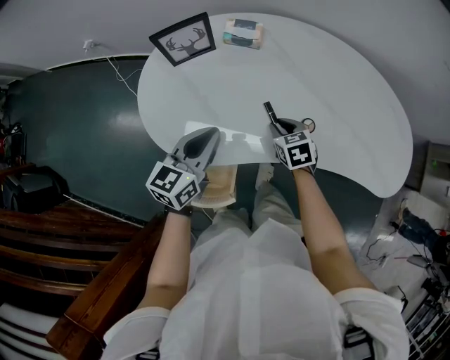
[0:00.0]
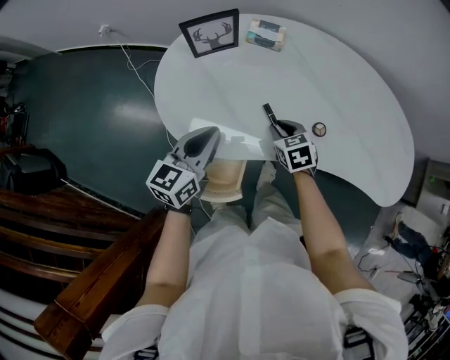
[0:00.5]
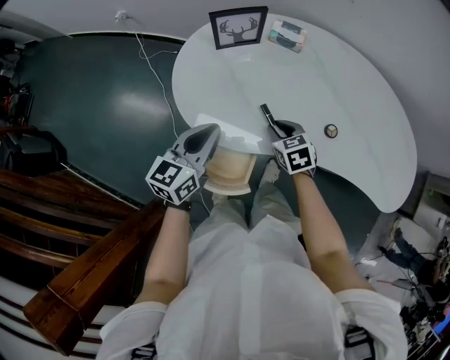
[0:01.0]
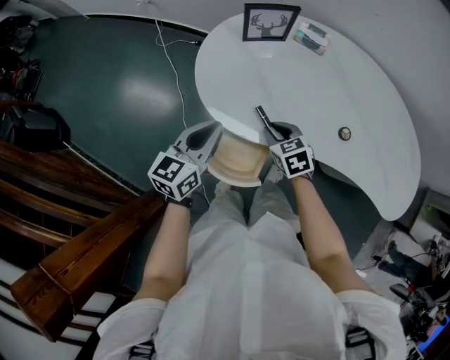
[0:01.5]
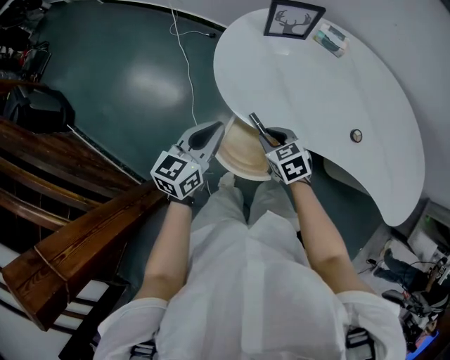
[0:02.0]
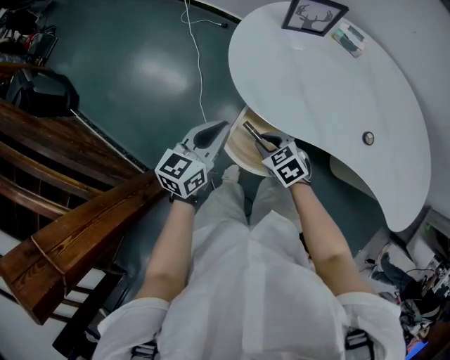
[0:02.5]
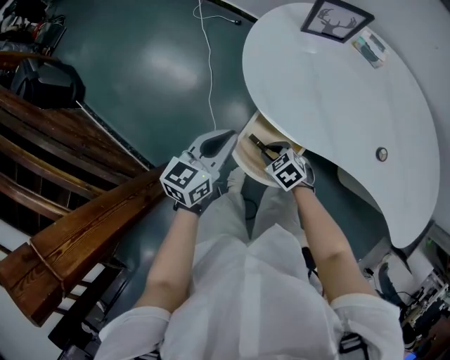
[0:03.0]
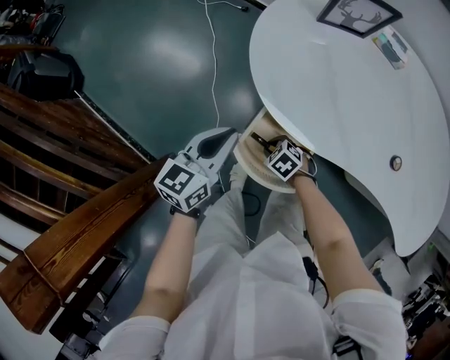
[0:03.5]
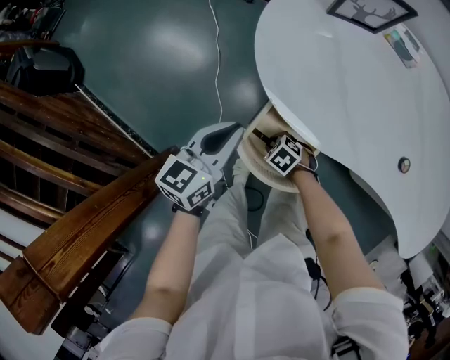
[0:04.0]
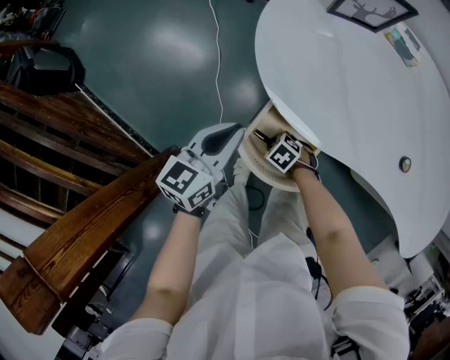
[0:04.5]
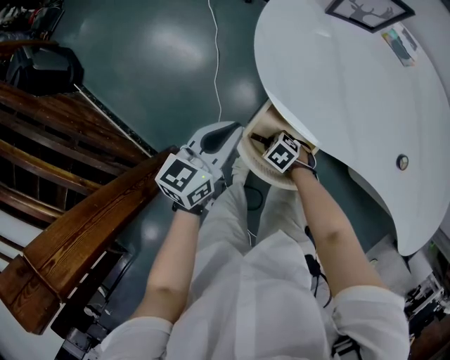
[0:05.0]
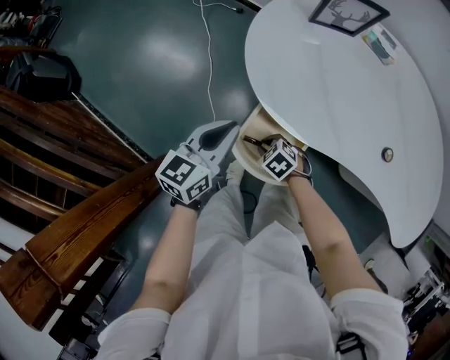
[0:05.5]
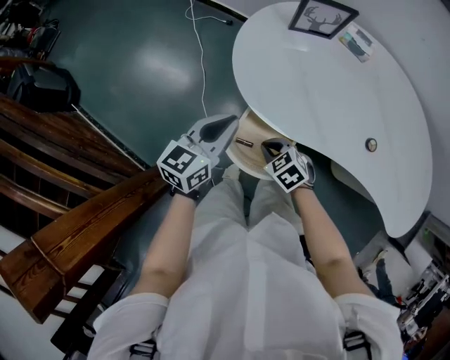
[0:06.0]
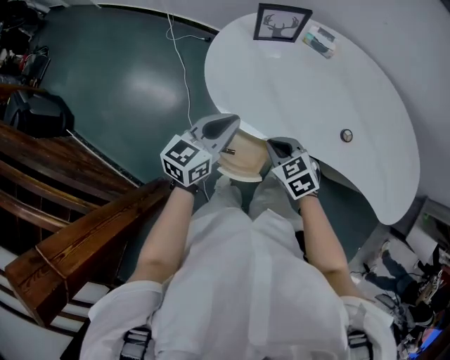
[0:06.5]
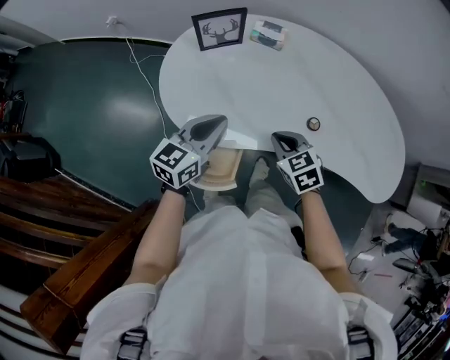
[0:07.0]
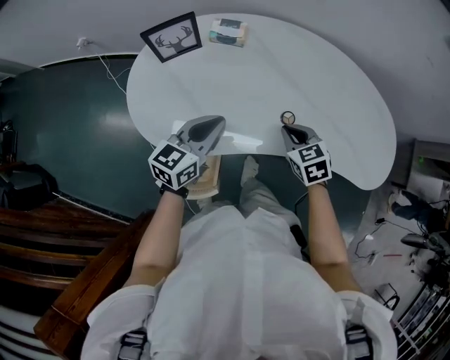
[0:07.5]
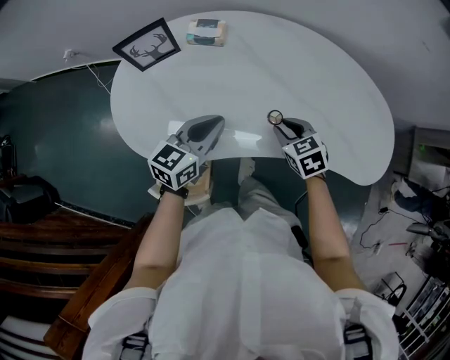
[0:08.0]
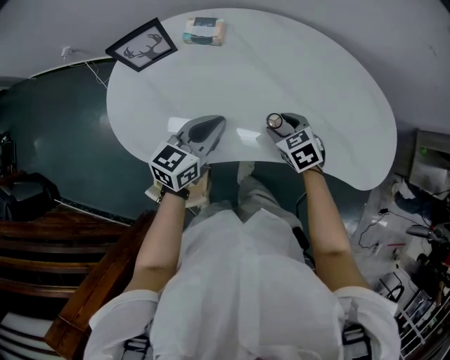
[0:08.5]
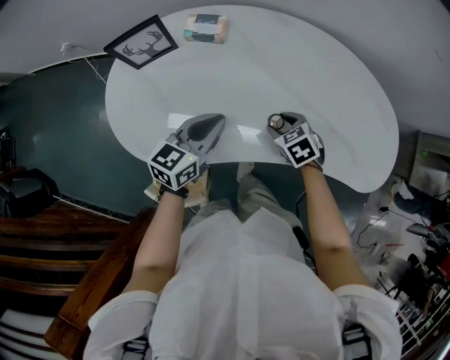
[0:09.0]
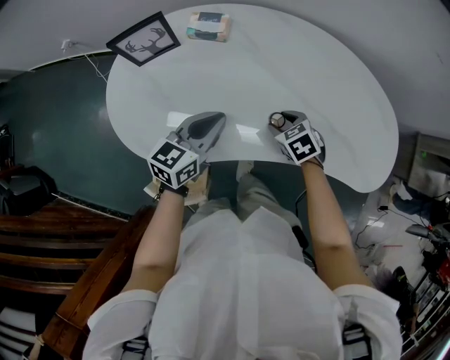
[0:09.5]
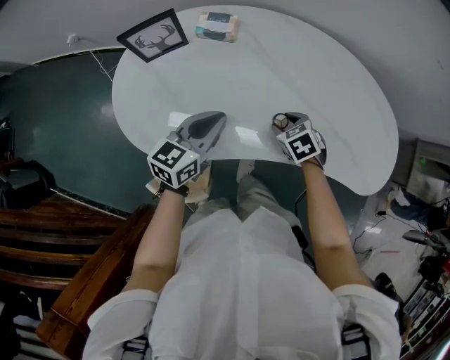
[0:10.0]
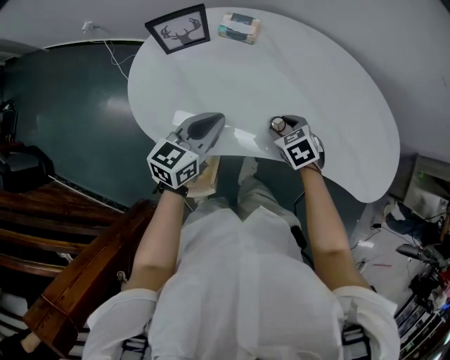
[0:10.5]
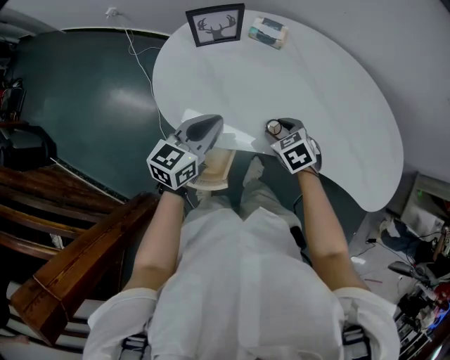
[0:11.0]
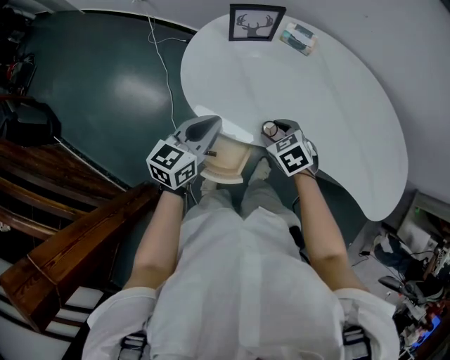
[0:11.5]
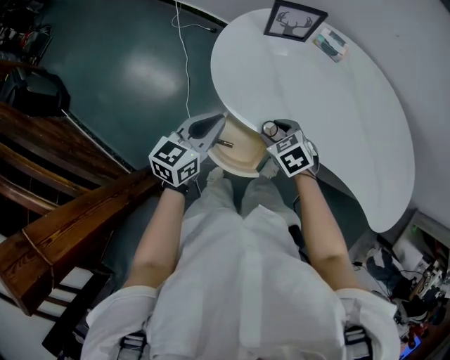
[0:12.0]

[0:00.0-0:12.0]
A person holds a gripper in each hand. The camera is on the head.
0:00.0 to 0:02.0: The grippers both shift to the left and backward by approximately 25 cm. The right gripper swivels approximately 30 degrees.
0:02.0 to 0:04.0: The left gripper shifts some 10 cm downward. Meanwhile the right gripper travels downward by about 25 cm, and swivels roughly 40 degrees.
0:04.0 to 0:06.0: The right gripper shifts roughly 20 cm upward, and rotates some 20 degrees, while the left gripper goes roughly 10 cm upward.
0:06.0 to 0:08.0: The left gripper shifts by roughly 30 cm, and rotates about 30 degrees; the right gripper moves some 40 cm, and changes its angle by roughly 40 degrees.
0:08.0 to 0:10.0: The right gripper moves downward, roughly 5 cm, and opens up.
0:10.0 to 0:12.0: The left gripper changes place by about 30 cm, and turns by approximately 20 degrees. The right gripper moves some 30 cm, and rotates approximately 30 degrees.

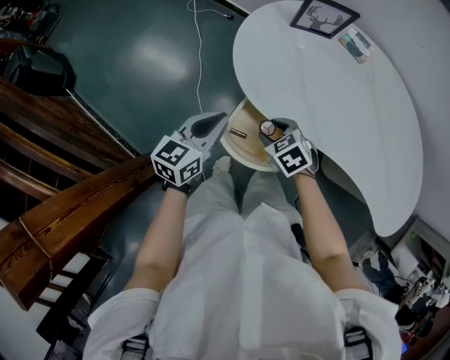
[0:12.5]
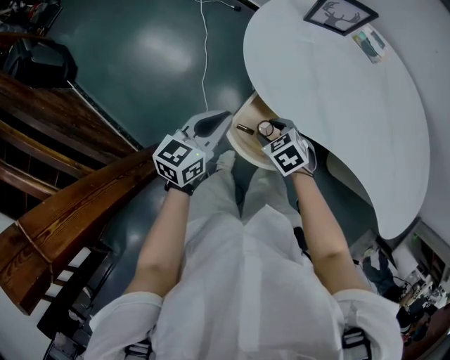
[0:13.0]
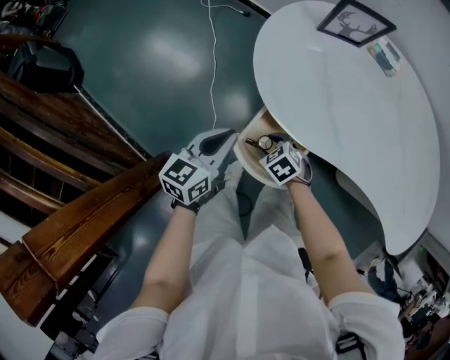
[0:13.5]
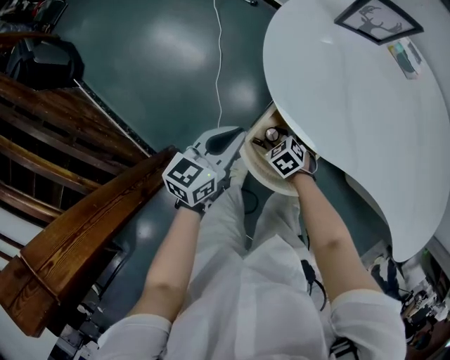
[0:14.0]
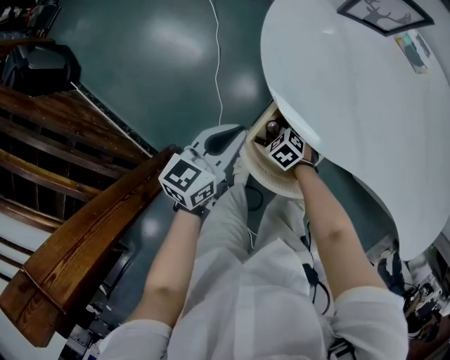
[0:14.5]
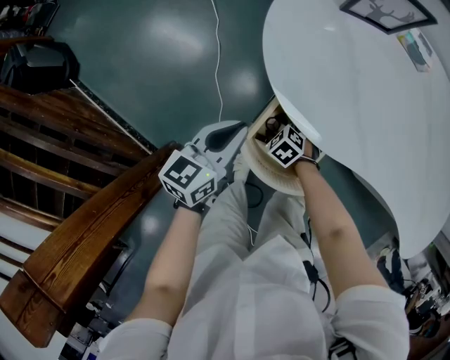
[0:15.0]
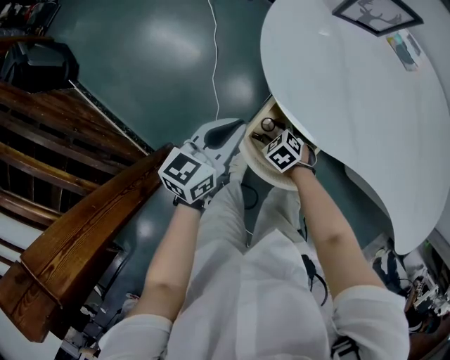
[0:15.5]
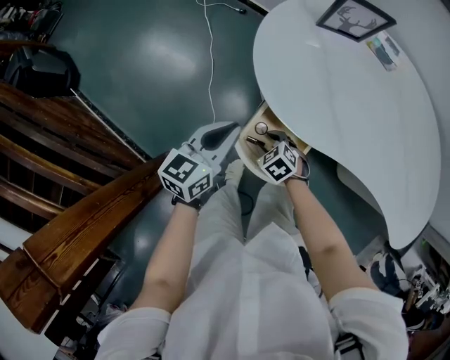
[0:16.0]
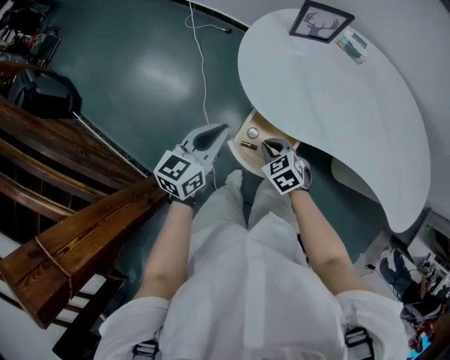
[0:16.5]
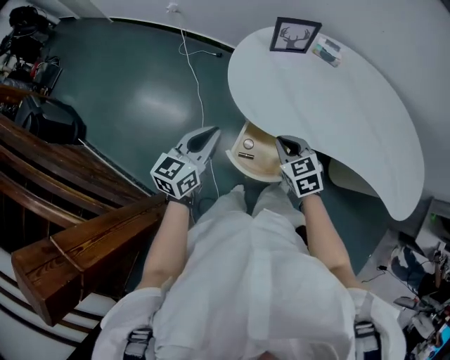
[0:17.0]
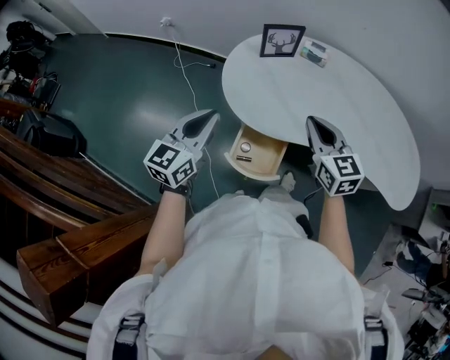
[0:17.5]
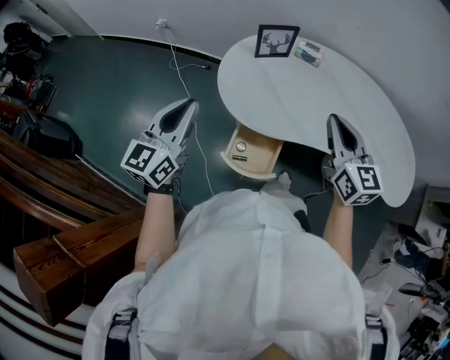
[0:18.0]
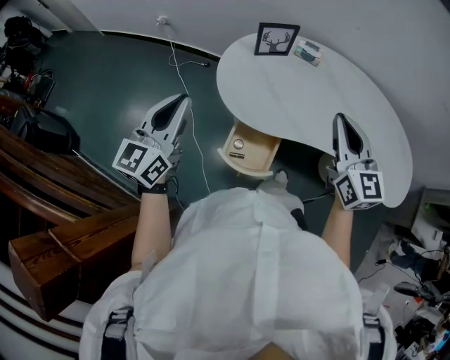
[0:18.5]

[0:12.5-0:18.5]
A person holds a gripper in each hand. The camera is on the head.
0:12.5 to 0:14.5: The right gripper moves downward, some 25 cm, while the left gripper moves downward, about 10 cm.
0:14.5 to 0:16.5: The right gripper moves upward, some 20 cm, changes its angle by approximately 20 degrees, and closes up. The left gripper is displaced upward by roughly 10 cm.
0:16.5 to 0:18.5: The left gripper goes roughly 20 cm upward, and changes its angle by roughly 20 degrees; the right gripper shifts approximately 40 cm upward and to the right, and angles its fingers upward, by approximately 50 degrees.

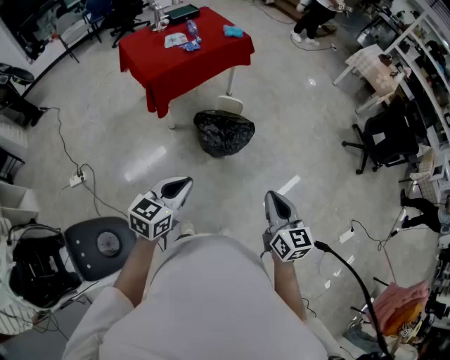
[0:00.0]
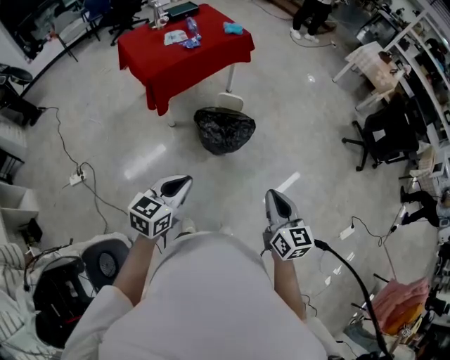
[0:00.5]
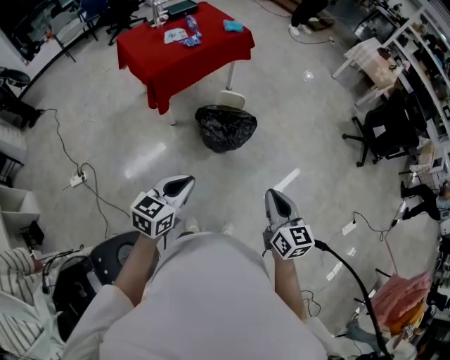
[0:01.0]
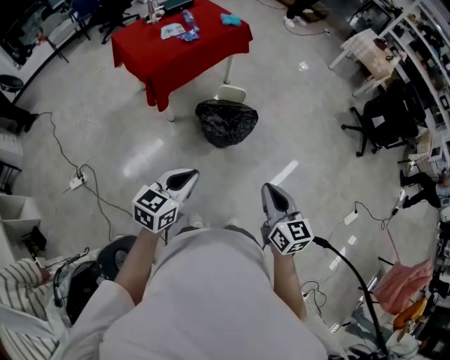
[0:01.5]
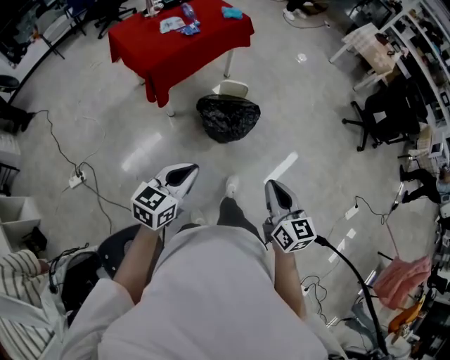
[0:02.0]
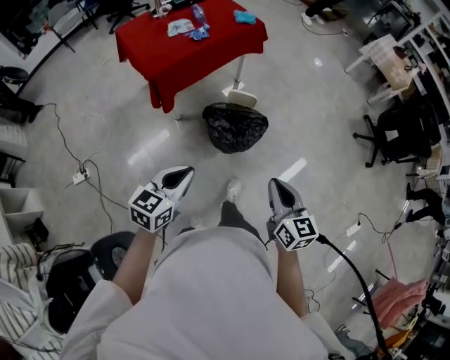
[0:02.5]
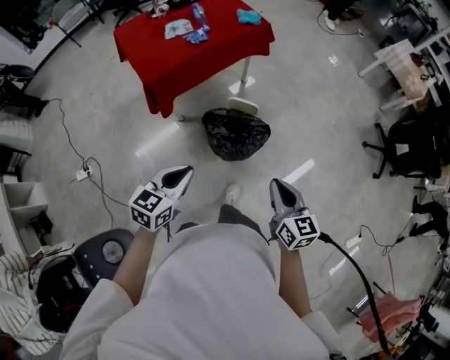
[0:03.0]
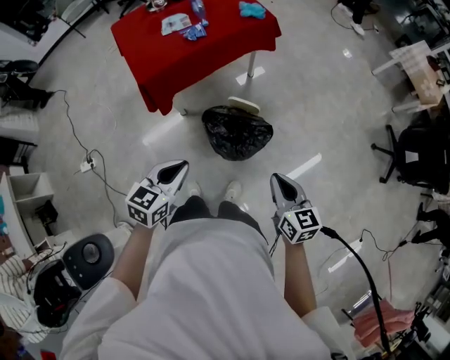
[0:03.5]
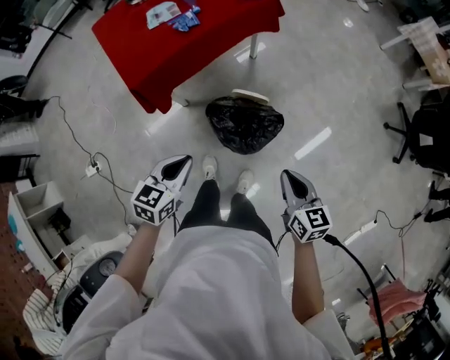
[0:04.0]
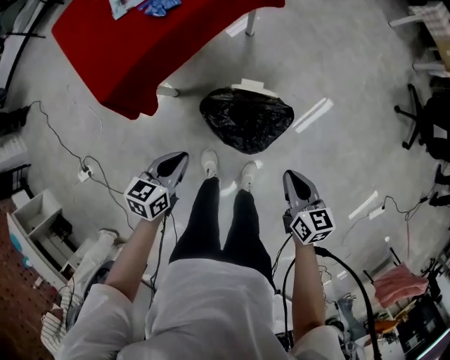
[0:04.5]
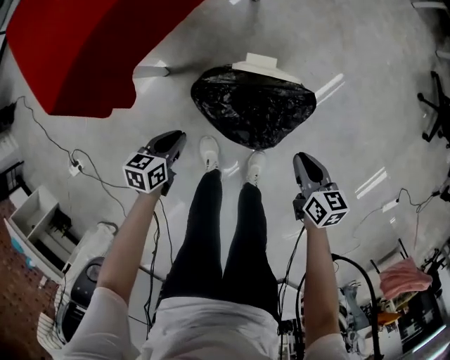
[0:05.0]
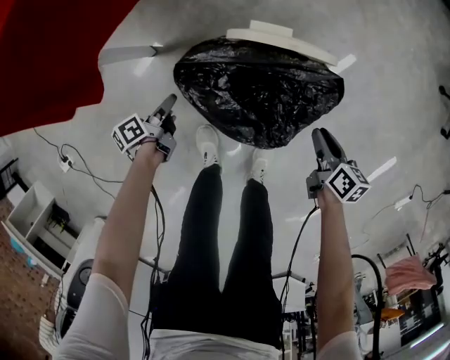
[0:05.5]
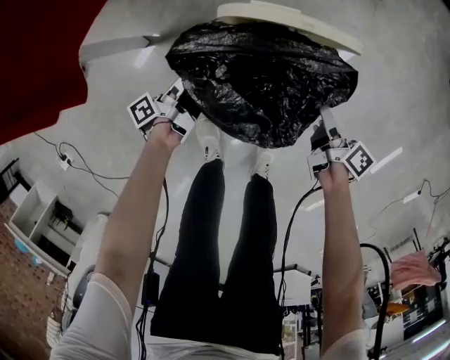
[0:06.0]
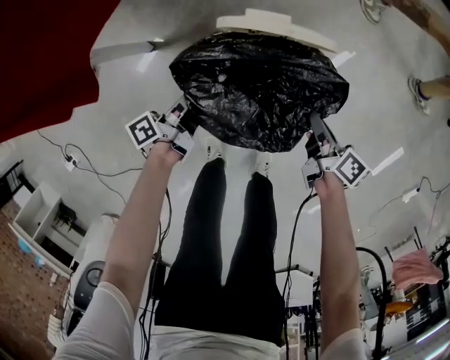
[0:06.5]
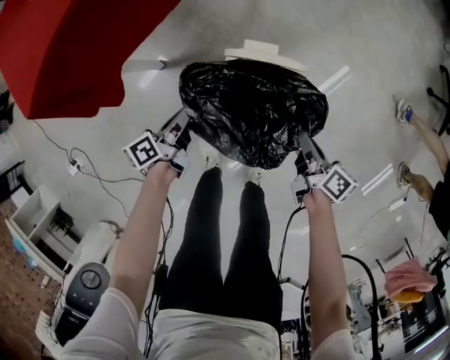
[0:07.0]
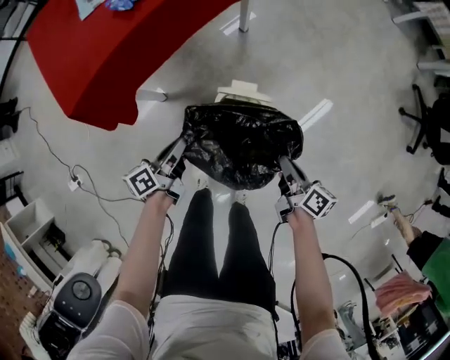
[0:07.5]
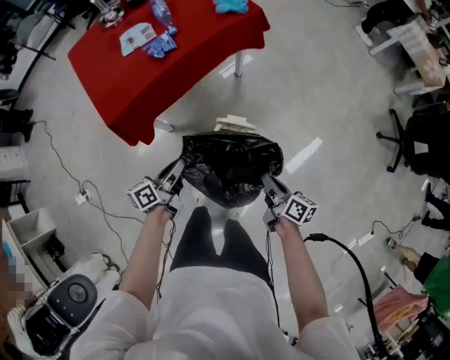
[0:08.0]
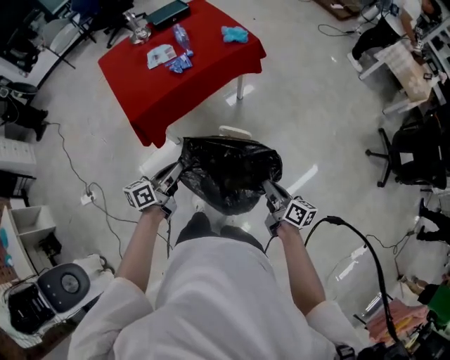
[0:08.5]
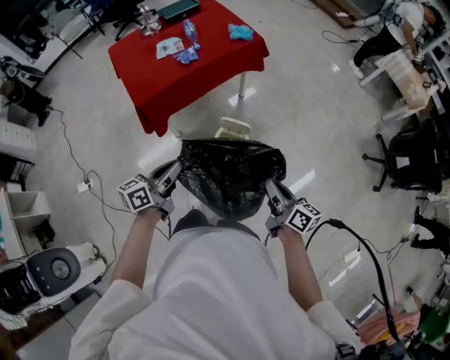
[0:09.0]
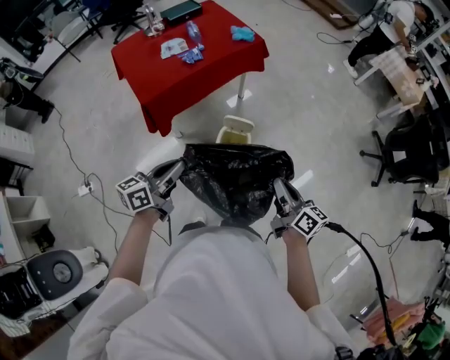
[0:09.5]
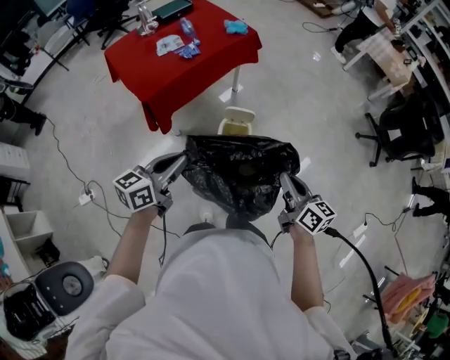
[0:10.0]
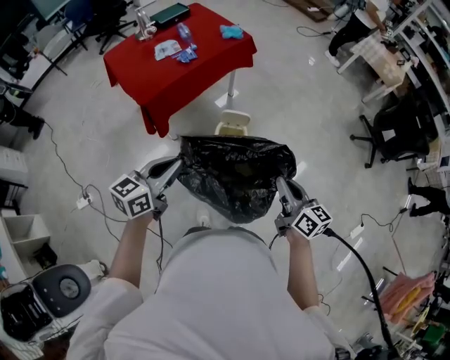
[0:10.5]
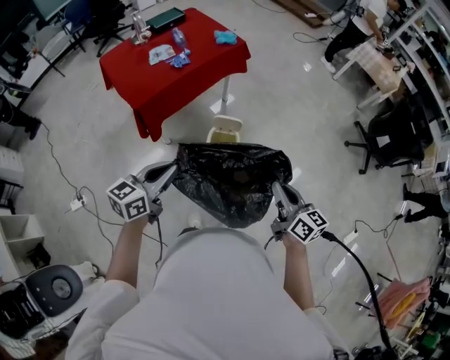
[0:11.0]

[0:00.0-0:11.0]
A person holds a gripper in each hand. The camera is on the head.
0:00.0 to 0:02.0: The grippers both shift to the left by about 10 cm.
0:02.0 to 0:03.5: Both grippers move forward, about 30 cm.
0:03.5 to 0:05.5: The grippers both shift downward by approximately 70 cm. The right gripper changes its angle by about 40 degrees, and opens its fingers, while the left gripper rolls counterclockwise, seen from behind, by about 70 degrees, and opens its fingers.
0:05.5 to 0:07.5: Both grippers move upward, roughly 30 cm. The right gripper turns by some 20 degrees, and closes its fingers, while the left gripper swivels roughly 20 degrees, and closes its fingers.
0:07.5 to 0:09.0: The two grippers go some 40 cm upward and backward. The right gripper swivels approximately 30 degrees, while the left gripper changes its angle by roughly 20 degrees.
0:09.0 to 0:11.0: The two grippers go some 15 cm backward and upward. The left gripper changes its angle by some 30 degrees. Meanwhile the right gripper changes its angle by approximately 20 degrees.
